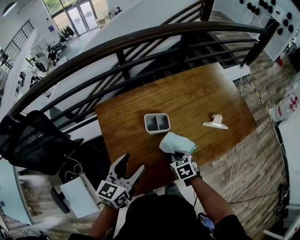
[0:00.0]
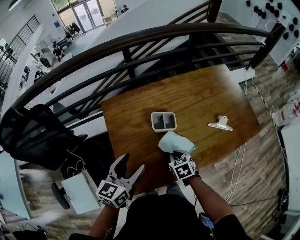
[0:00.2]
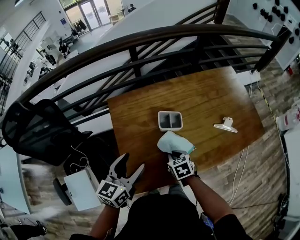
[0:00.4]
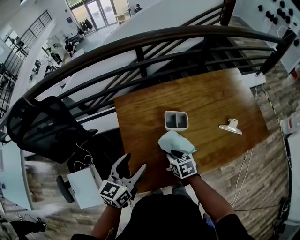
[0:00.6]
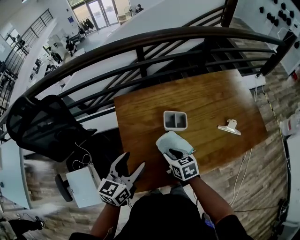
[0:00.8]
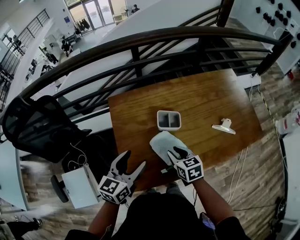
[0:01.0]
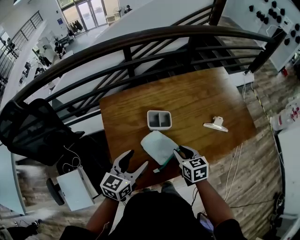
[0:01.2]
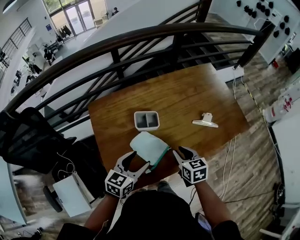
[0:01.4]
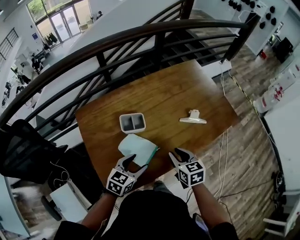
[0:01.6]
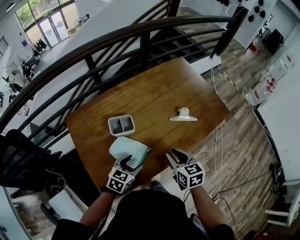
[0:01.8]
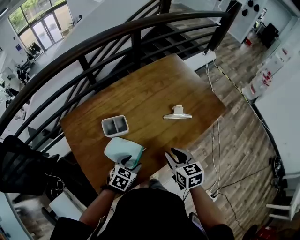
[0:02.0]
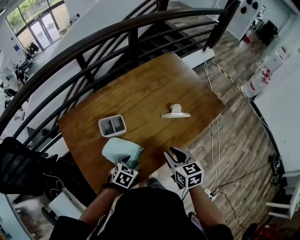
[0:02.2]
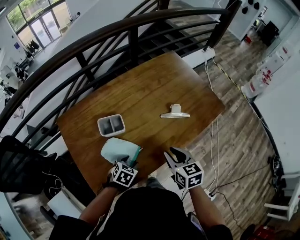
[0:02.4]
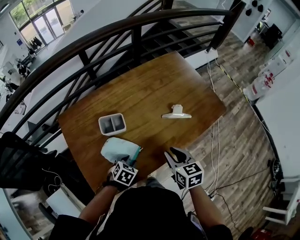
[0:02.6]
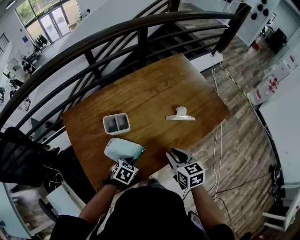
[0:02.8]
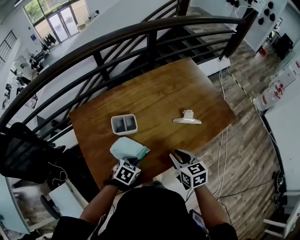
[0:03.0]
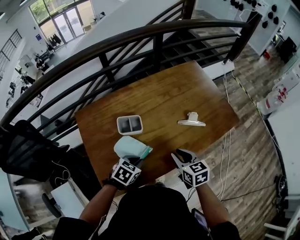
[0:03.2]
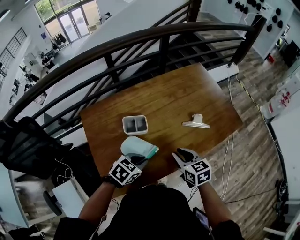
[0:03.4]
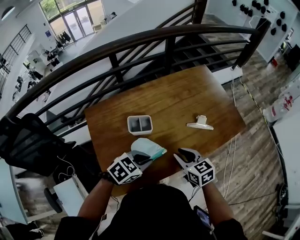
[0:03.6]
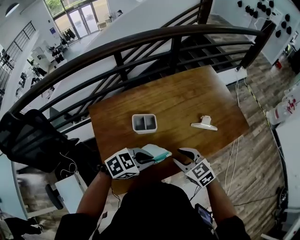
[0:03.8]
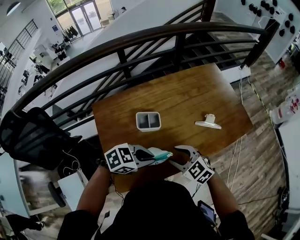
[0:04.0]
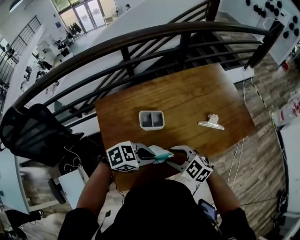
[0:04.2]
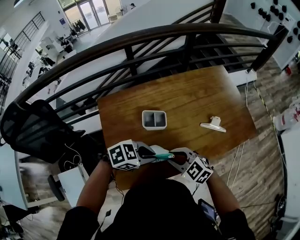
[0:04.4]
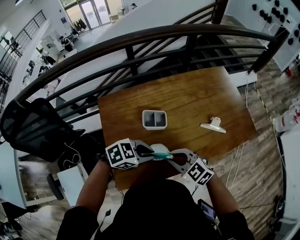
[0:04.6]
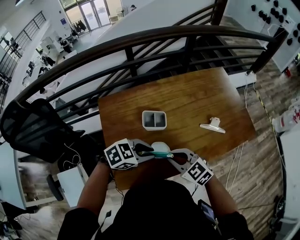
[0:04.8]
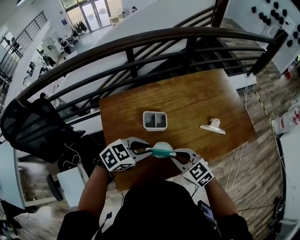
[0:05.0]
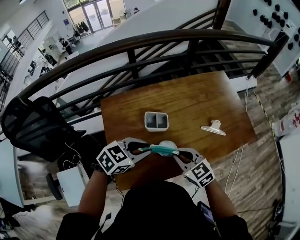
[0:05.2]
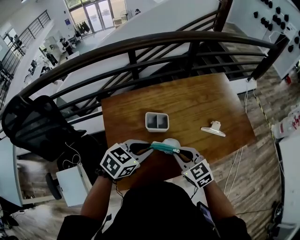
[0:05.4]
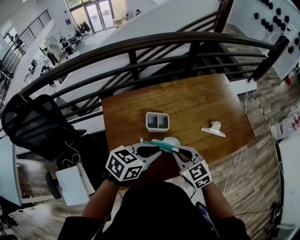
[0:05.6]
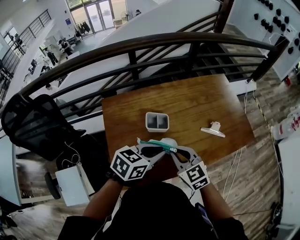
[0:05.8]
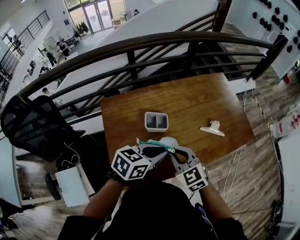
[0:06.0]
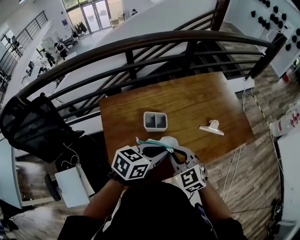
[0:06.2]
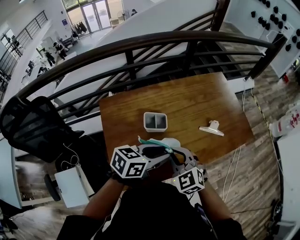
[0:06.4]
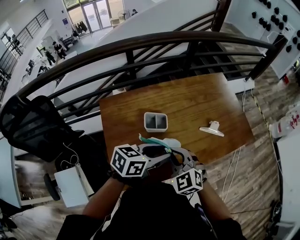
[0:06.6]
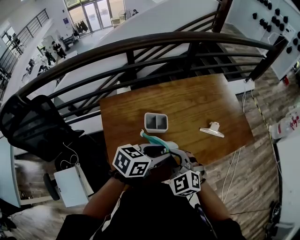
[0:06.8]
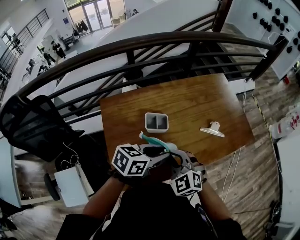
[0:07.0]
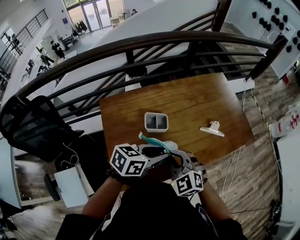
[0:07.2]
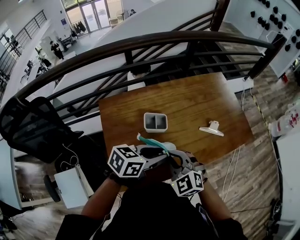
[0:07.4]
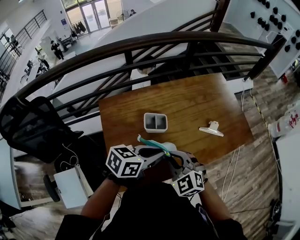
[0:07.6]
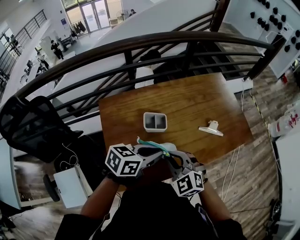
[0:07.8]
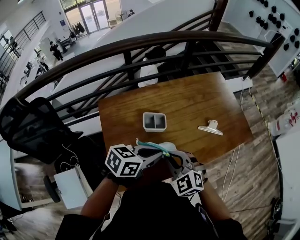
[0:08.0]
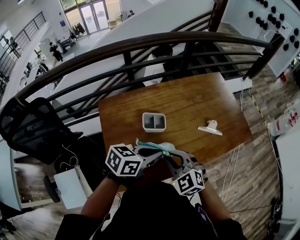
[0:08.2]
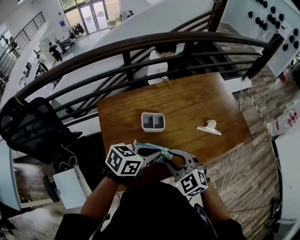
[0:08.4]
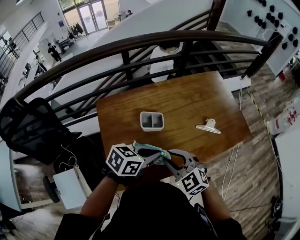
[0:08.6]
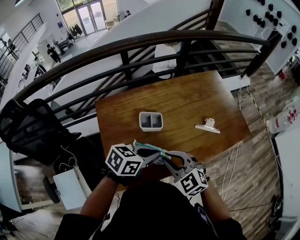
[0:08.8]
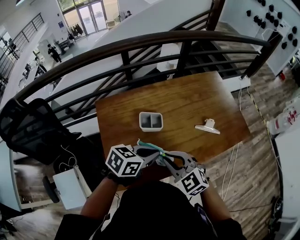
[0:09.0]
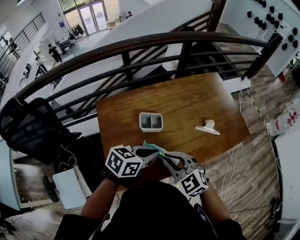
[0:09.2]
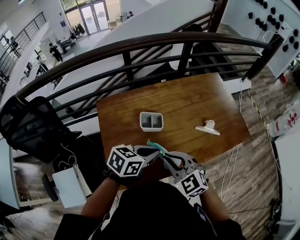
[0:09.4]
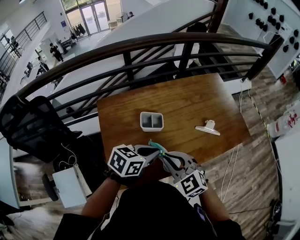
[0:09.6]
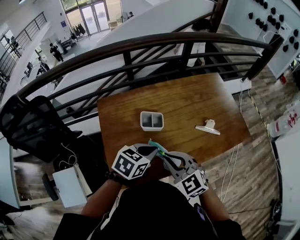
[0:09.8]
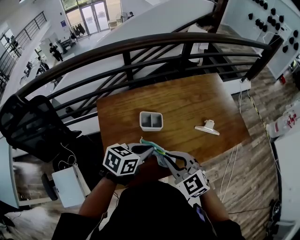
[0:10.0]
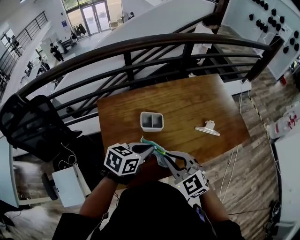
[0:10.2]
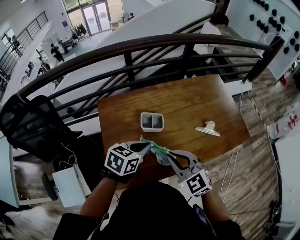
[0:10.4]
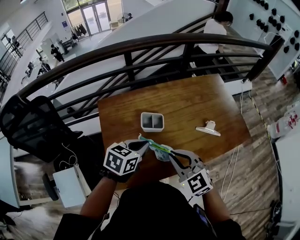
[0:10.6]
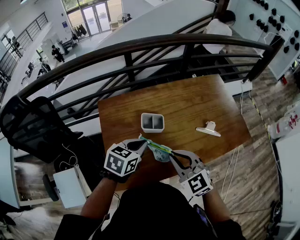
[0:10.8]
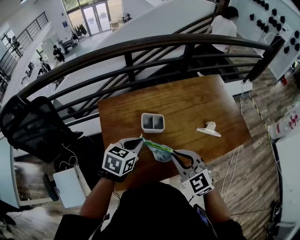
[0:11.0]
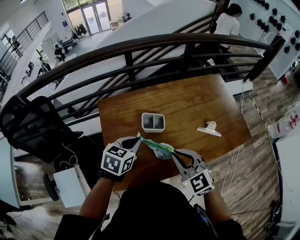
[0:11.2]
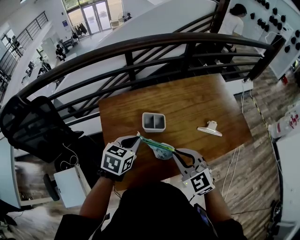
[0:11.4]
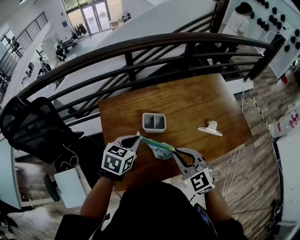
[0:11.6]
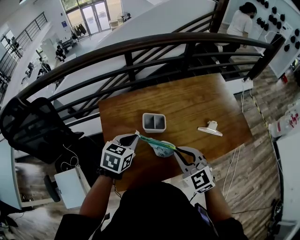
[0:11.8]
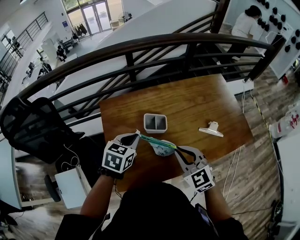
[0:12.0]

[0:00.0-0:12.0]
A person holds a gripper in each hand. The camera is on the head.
0:00.0 to 0:01.6: The right gripper ends up some 15 cm from where it was, and rotates approximately 20 degrees; the left gripper shifts by roughly 15 cm, and swivels some 30 degrees.
0:01.6 to 0:03.0: The left gripper goes approximately 5 cm downward, changes its angle by roughly 30 degrees, and closes.
0:03.0 to 0:04.4: The left gripper is displaced upward by approximately 15 cm, and swivels about 30 degrees; the right gripper ends up about 15 cm from where it was, and twists some 40 degrees counterclockwise, seen from behind.
0:04.4 to 0:06.0: Both grippers travel together upward, approximately 5 cm. The left gripper turns by about 40 degrees. The right gripper swivels approximately 20 degrees.
0:06.0 to 0:07.6: The left gripper opens, then closes once more.
0:07.6 to 0:09.0: The grippers move only a little.
0:09.0 to 0:10.4: The left gripper changes place by roughly 5 cm.
0:10.4 to 0:12.0: The left gripper travels to the left by about 5 cm.

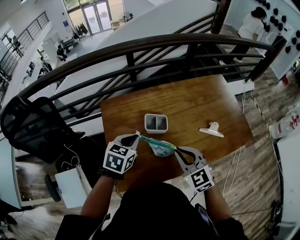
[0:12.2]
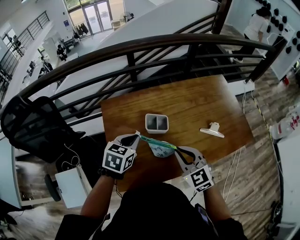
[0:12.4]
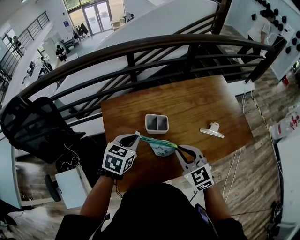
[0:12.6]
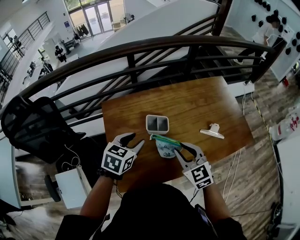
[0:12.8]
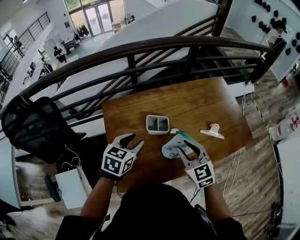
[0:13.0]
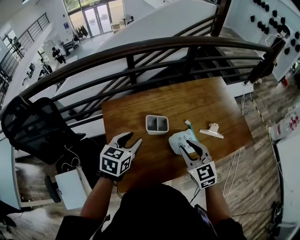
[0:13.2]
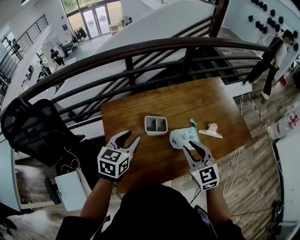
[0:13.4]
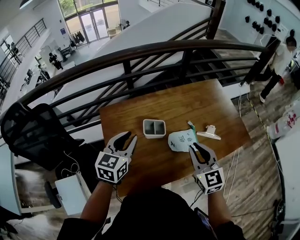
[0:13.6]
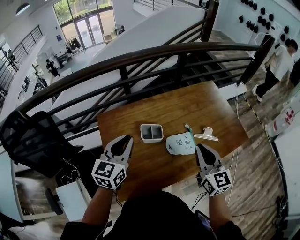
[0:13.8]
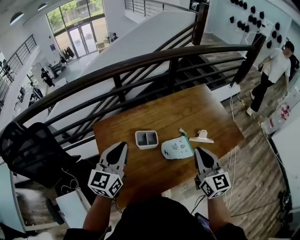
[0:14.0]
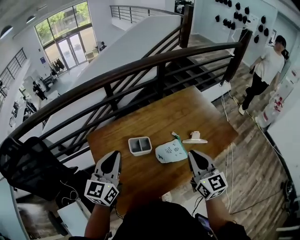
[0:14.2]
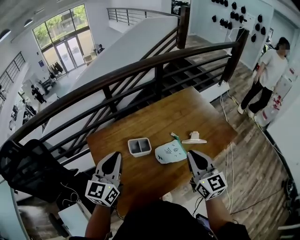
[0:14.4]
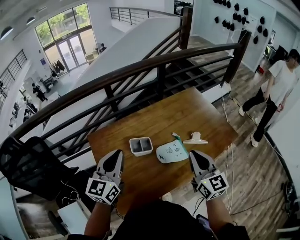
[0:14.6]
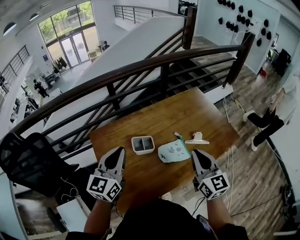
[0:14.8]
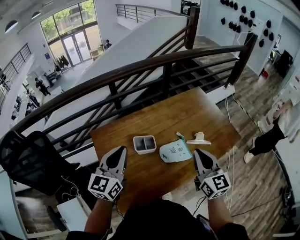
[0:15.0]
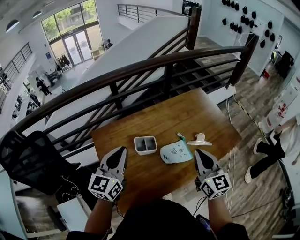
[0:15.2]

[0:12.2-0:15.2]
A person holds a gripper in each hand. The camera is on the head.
0:12.2 to 0:13.8: The right gripper travels to the right and upward by approximately 10 cm, and changes its angle by some 40 degrees, while the left gripper heads upward, covering approximately 10 cm, rotates approximately 30 degrees, and opens, then closes again.
0:13.8 to 0:15.2: The grippers make only small movements.

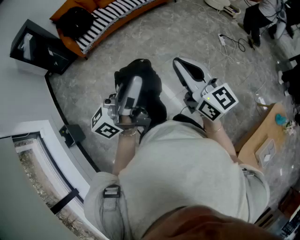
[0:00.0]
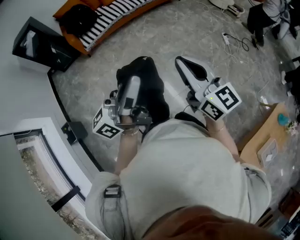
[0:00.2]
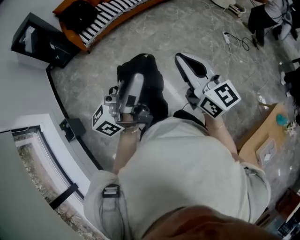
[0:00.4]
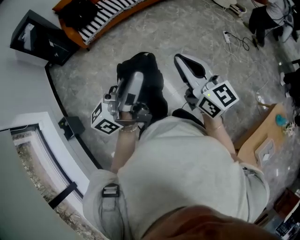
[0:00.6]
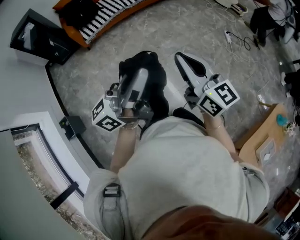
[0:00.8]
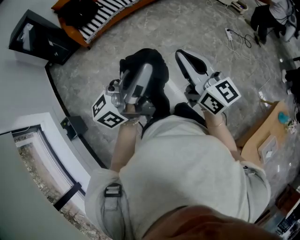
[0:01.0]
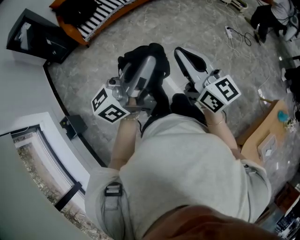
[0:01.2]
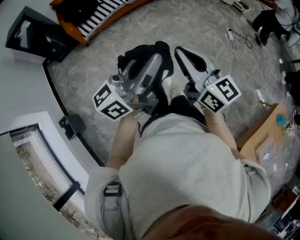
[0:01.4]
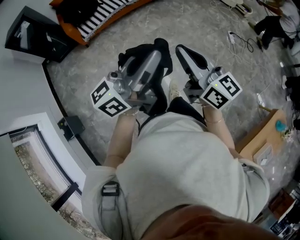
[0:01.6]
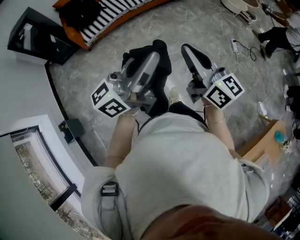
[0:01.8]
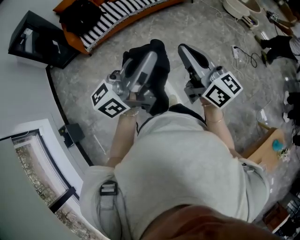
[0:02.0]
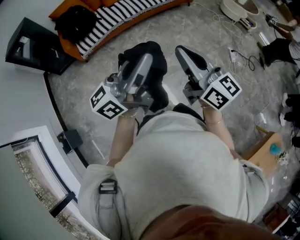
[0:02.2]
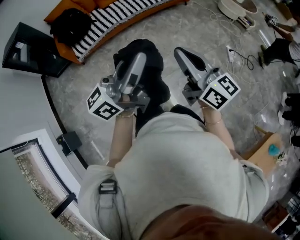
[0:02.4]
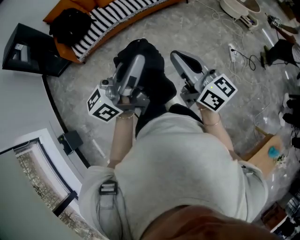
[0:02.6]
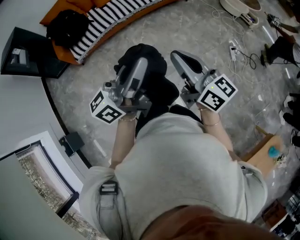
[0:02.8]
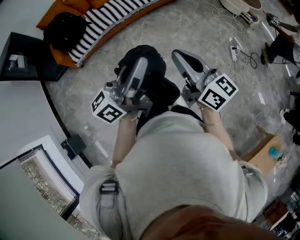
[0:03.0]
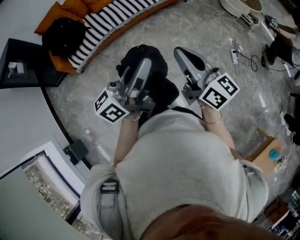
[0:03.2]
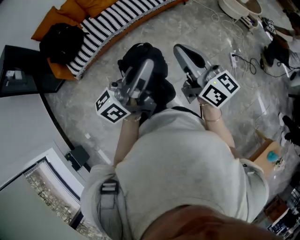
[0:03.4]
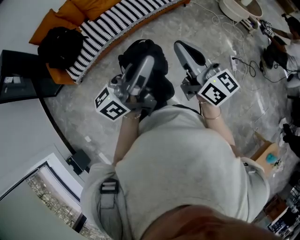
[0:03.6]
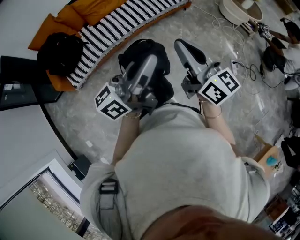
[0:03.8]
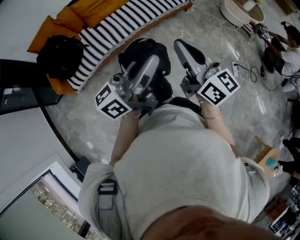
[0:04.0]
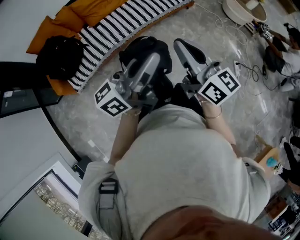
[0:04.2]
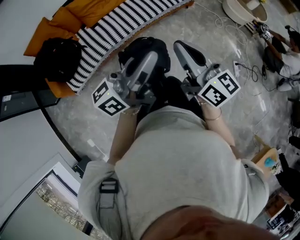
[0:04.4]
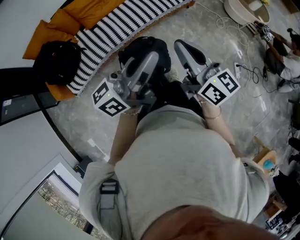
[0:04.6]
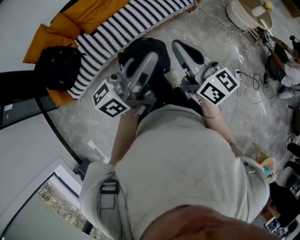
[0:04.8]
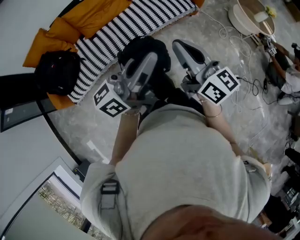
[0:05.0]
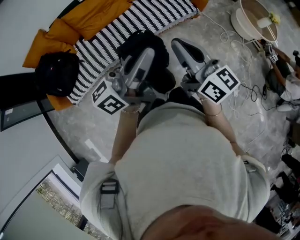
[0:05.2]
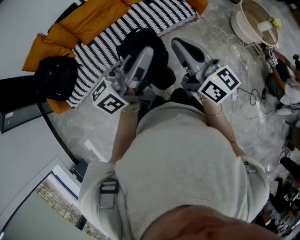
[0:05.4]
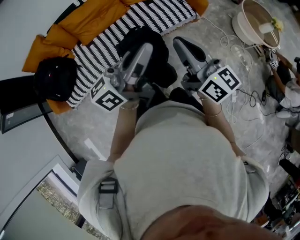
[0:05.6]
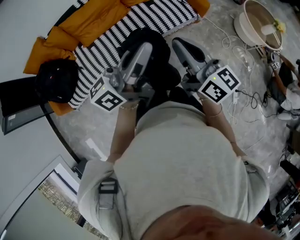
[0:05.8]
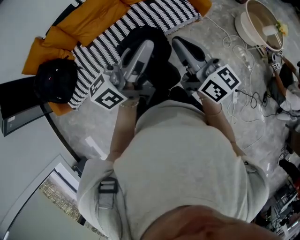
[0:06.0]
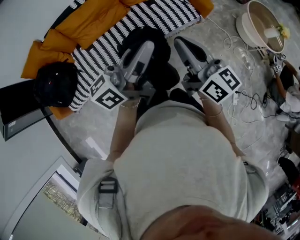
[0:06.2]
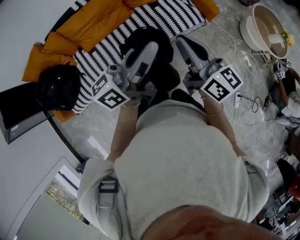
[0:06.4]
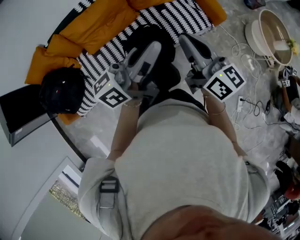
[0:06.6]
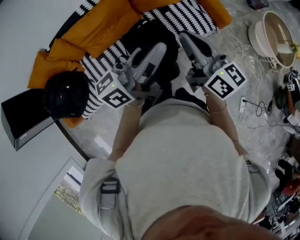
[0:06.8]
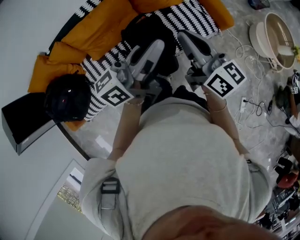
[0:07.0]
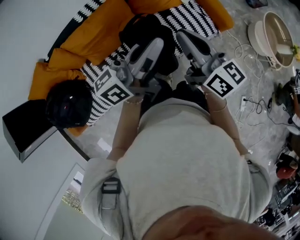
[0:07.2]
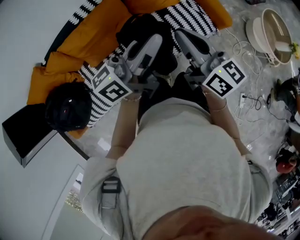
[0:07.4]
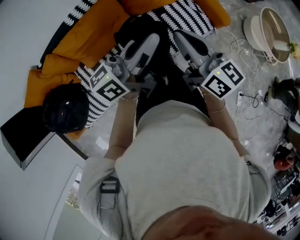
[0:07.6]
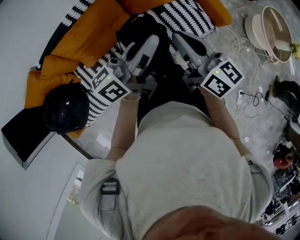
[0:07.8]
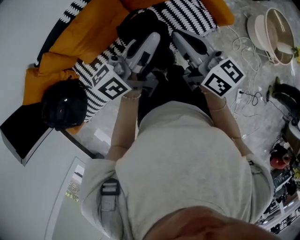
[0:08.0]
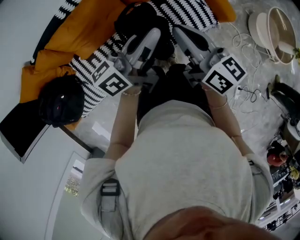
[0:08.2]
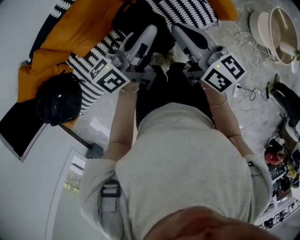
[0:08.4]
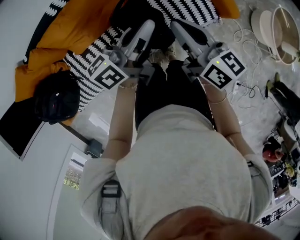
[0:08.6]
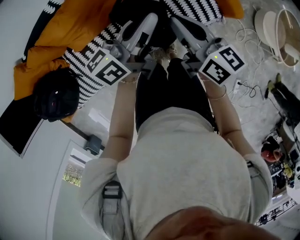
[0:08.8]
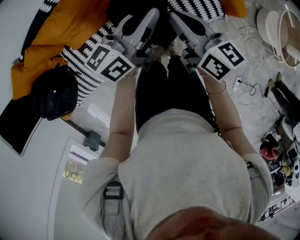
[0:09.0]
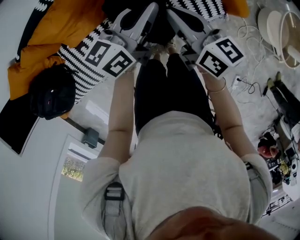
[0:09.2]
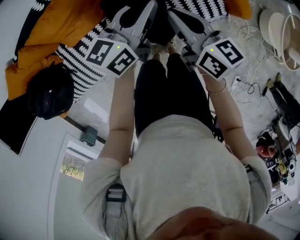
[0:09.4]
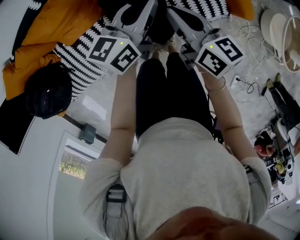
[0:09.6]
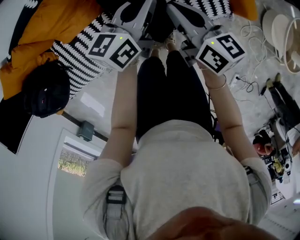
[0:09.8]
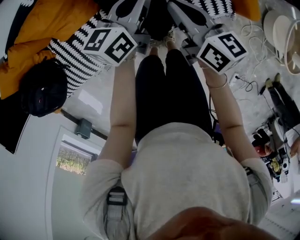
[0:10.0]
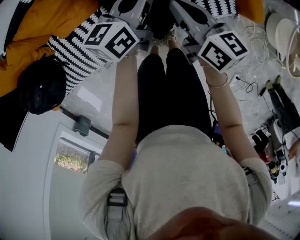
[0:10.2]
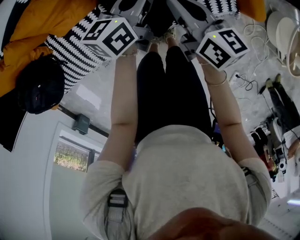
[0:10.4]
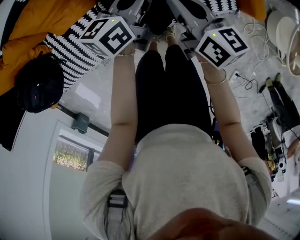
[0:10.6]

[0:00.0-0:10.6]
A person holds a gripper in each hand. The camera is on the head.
0:00.0 to 0:01.6: The right gripper moves forward and to the left, roughly 15 cm; the left gripper heads forward, covering some 15 cm.
0:01.6 to 0:03.0: The pair of grippers is taken forward, approximately 40 cm.
0:03.0 to 0:04.6: The pair of grippers is taken forward, approximately 50 cm.
0:04.6 to 0:06.0: The two grippers go approximately 35 cm forward.
0:06.0 to 0:07.6: The right gripper goes approximately 40 cm forward and to the left, while the left gripper goes approximately 40 cm forward.
0:07.6 to 0:09.0: The two grippers go approximately 20 cm downward and forward.
0:09.0 to 0:10.6: Both grippers travel together downward, approximately 15 cm.
